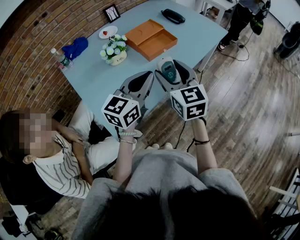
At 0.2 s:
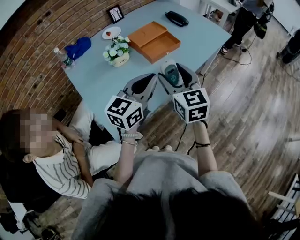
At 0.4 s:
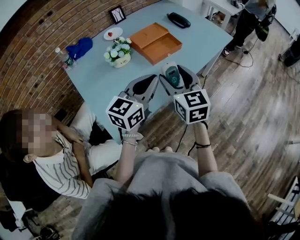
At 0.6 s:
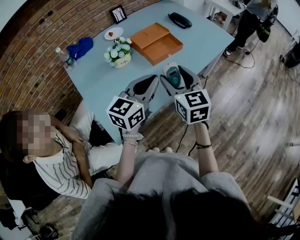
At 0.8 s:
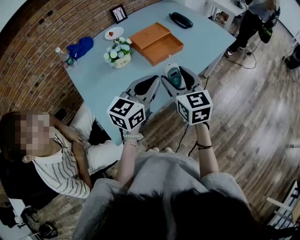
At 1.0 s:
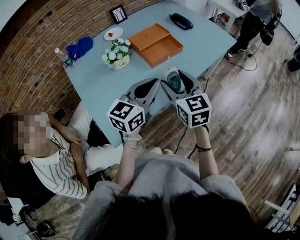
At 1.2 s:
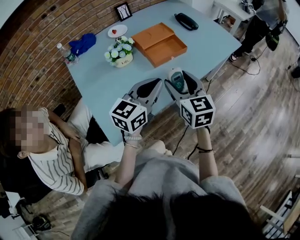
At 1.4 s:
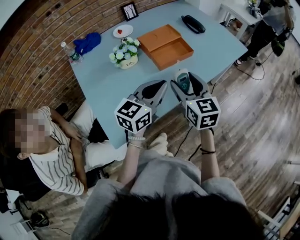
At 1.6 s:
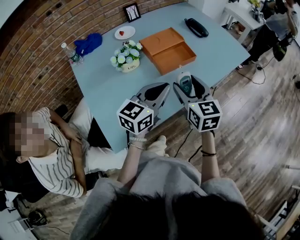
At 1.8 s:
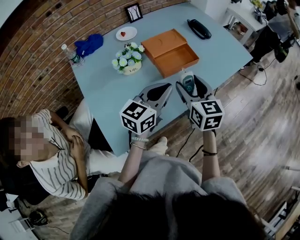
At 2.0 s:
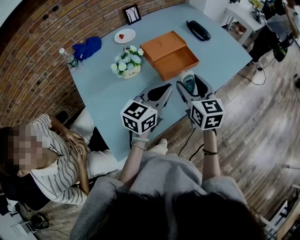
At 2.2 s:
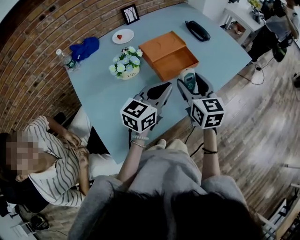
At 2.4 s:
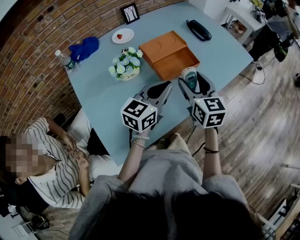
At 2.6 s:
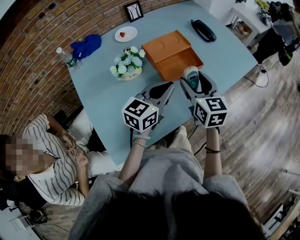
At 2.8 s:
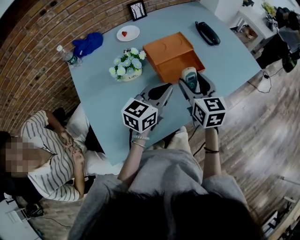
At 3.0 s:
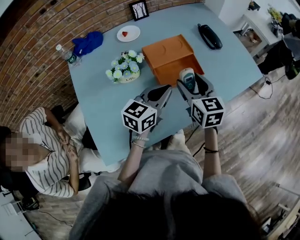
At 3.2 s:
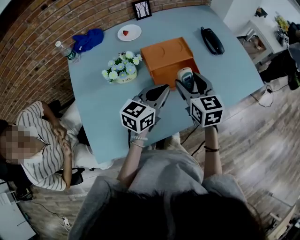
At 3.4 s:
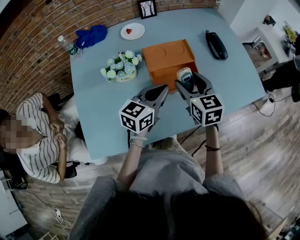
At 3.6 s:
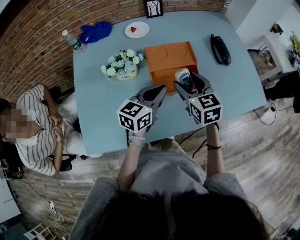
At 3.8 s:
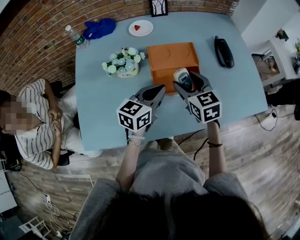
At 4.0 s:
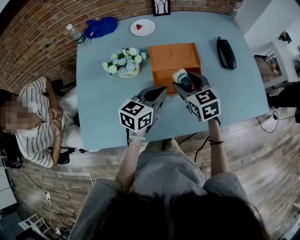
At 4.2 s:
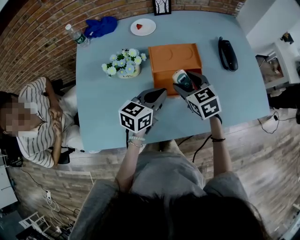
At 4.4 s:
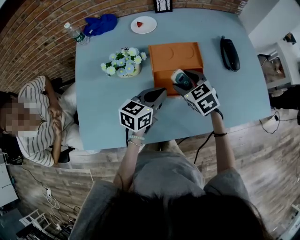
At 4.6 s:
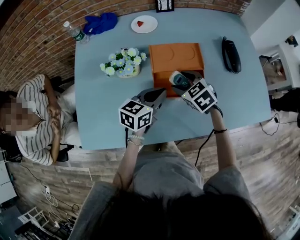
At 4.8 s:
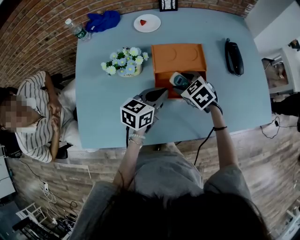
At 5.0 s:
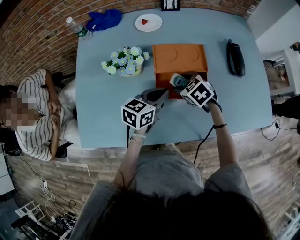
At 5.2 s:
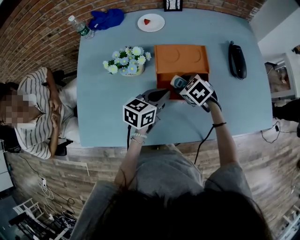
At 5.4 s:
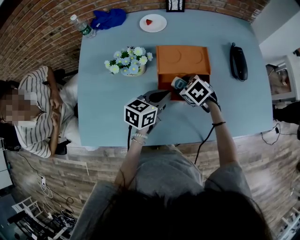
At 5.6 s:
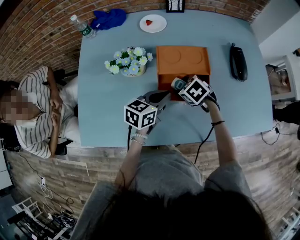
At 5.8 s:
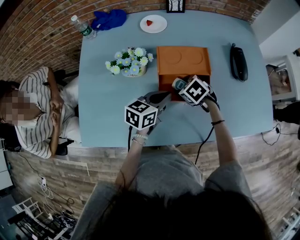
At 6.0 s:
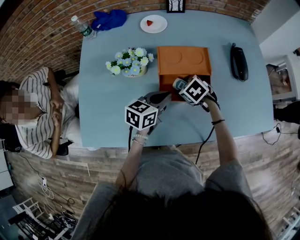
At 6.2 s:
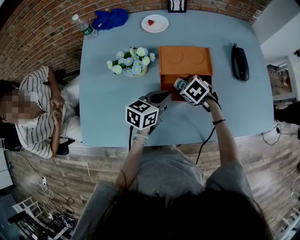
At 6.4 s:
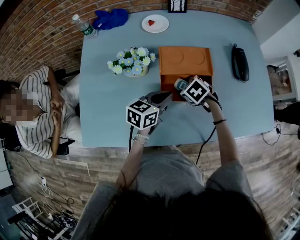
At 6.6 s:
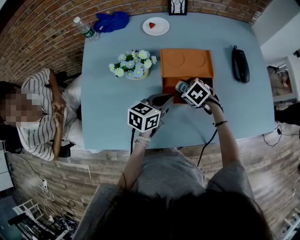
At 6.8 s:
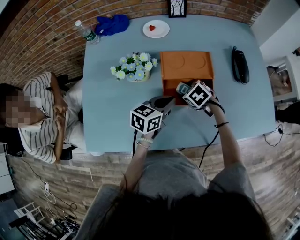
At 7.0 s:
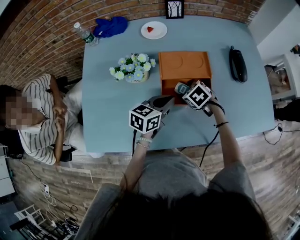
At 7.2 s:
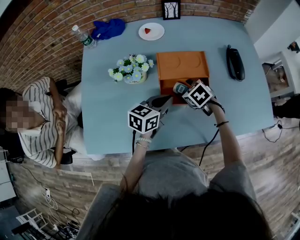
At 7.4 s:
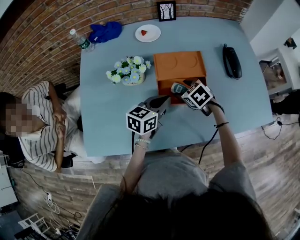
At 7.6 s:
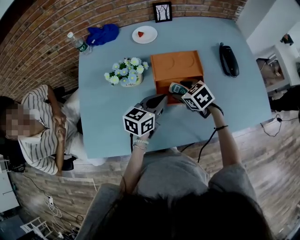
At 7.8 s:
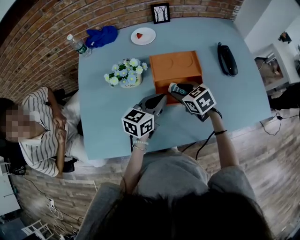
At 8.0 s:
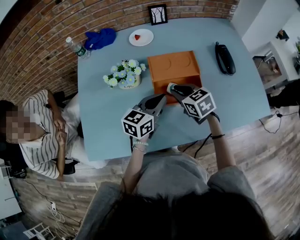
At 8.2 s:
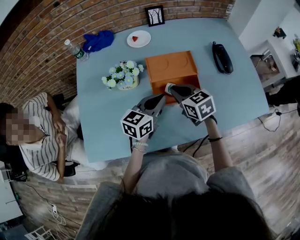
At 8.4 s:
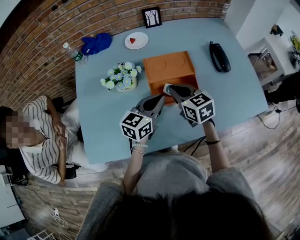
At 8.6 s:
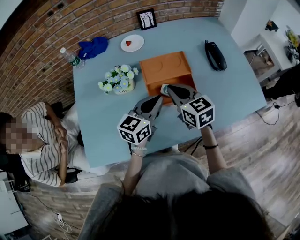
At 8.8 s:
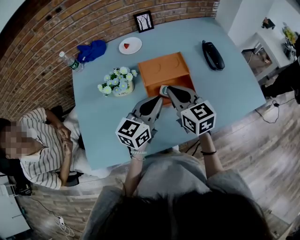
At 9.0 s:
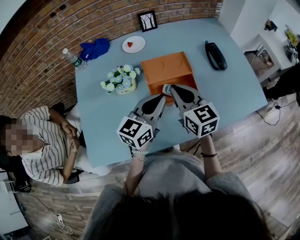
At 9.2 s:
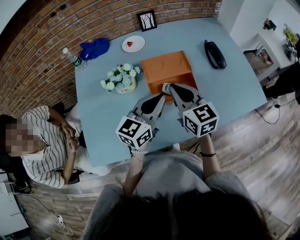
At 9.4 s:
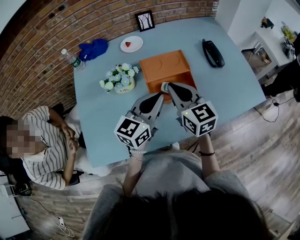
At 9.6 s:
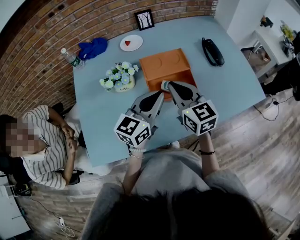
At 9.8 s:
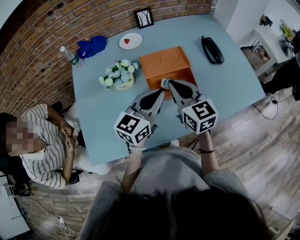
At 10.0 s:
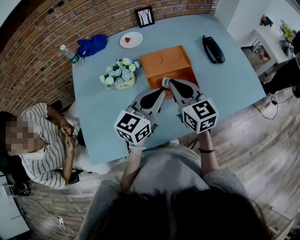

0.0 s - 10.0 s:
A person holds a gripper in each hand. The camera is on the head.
0.0 s - 1.4 s: The grippers both shift forward by about 5 cm.
1.4 s - 2.8 s: The grippers both shift forward by roughly 15 cm.
2.8 s - 4.2 s: The left gripper ends up about 10 cm from where it was, and changes its angle by approximately 20 degrees, while the right gripper changes place by roughly 15 cm, and rotates roughly 40 degrees.
4.2 s - 5.8 s: The right gripper shifts about 15 cm downward, and swivels some 30 degrees. The left gripper is displaced downward by approximately 5 cm.
5.8 s - 7.2 s: There are only small adjustments of the grippers.
7.2 s - 8.6 s: The right gripper heads upward, covering approximately 15 cm, angles its fingers upward, by roughly 40 degrees, and closes. The left gripper shifts roughly 10 cm upward.
8.6 s - 10.0 s: The left gripper ends up roughly 5 cm from where it was; the right gripper shifts by some 5 cm.

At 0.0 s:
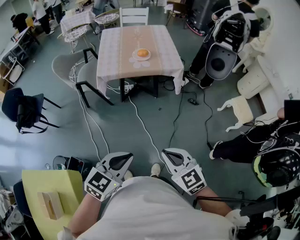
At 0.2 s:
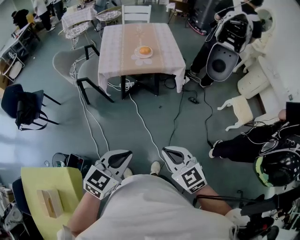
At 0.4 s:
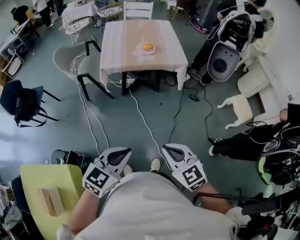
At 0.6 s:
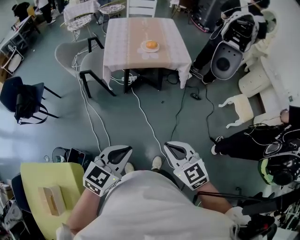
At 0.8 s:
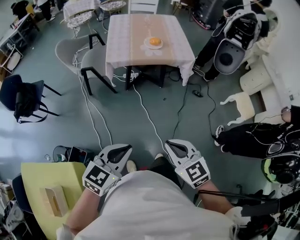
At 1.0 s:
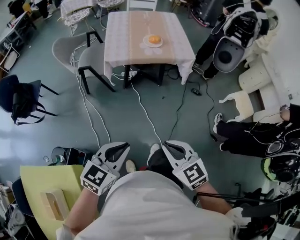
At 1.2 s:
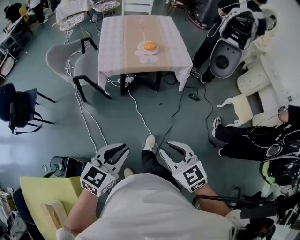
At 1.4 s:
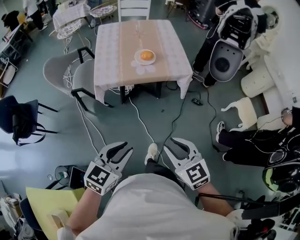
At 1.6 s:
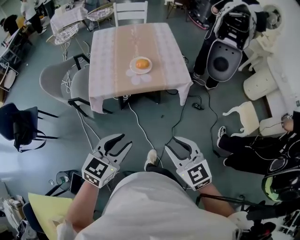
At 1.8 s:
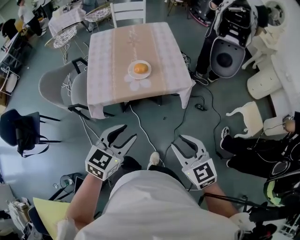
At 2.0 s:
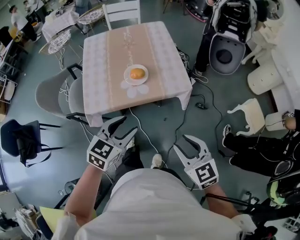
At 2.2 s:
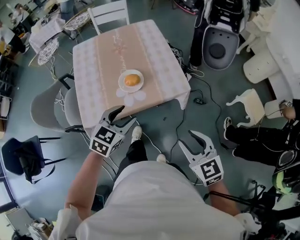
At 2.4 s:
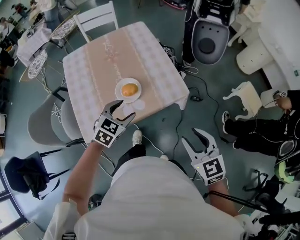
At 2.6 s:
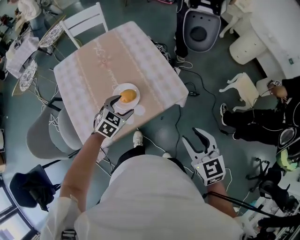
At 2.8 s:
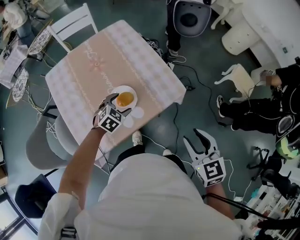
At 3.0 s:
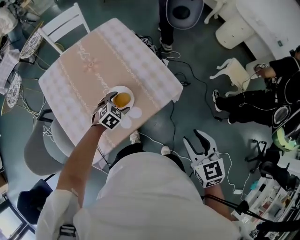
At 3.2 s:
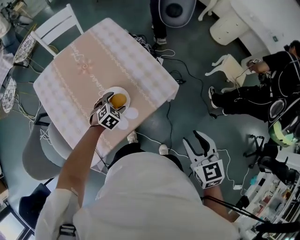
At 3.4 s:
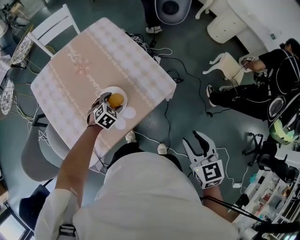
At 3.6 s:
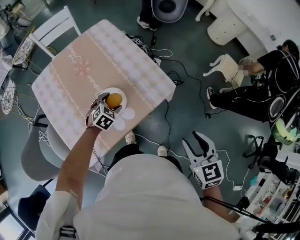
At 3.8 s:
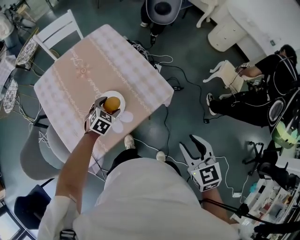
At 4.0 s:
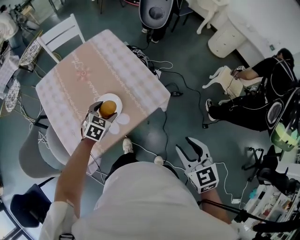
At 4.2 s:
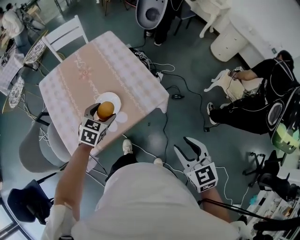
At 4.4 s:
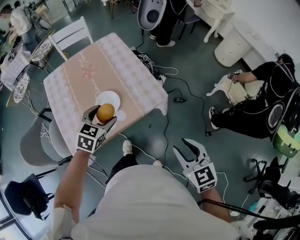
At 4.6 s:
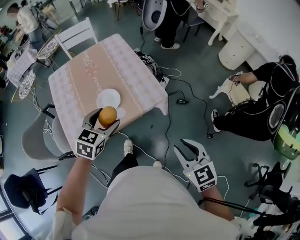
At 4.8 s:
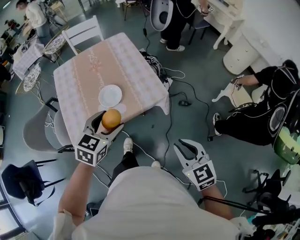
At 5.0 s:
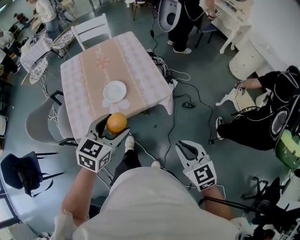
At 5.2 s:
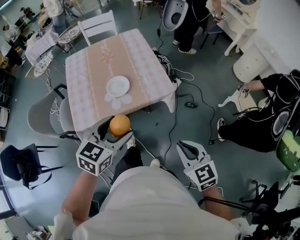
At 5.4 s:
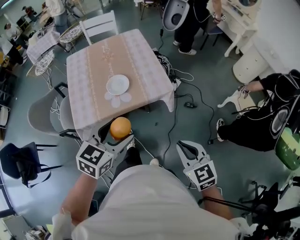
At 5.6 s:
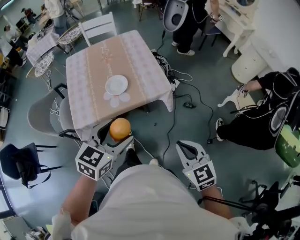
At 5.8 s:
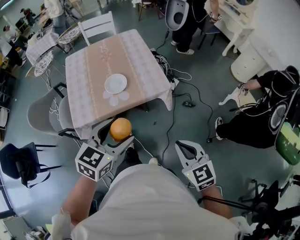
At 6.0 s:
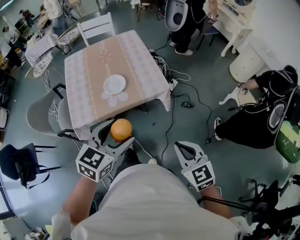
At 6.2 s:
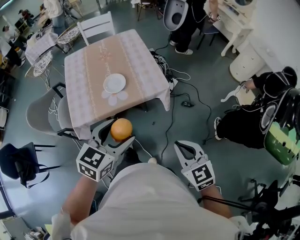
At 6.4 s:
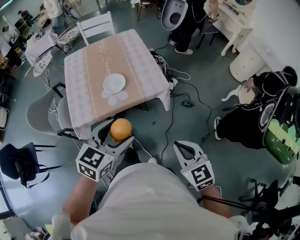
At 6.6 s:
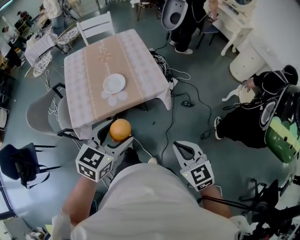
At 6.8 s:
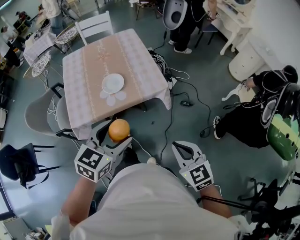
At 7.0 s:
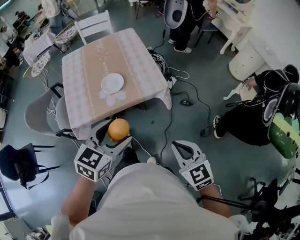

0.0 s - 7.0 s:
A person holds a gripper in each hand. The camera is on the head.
0.0 s - 1.4 s: Both grippers move forward, some 20 cm. The right gripper opens up.
1.4 s - 2.8 s: The right gripper shifts by about 35 cm, and rotates some 40 degrees; the left gripper ends up approximately 60 cm from where it was, swivels roughly 50 degrees, and opens up.
2.8 s - 4.2 s: The right gripper goes approximately 5 cm to the right; the left gripper moves upward, about 10 cm.
4.2 s - 5.6 s: The left gripper heads backward, upward and to the right, covering some 35 cm. Meanwhile the right gripper shifts about 15 cm backward and to the right, turns by some 20 degrees, and closes its fingers.
5.6 s - 7.0 s: There are only small adjustments of the grippers.

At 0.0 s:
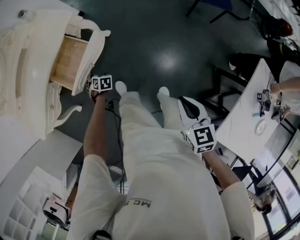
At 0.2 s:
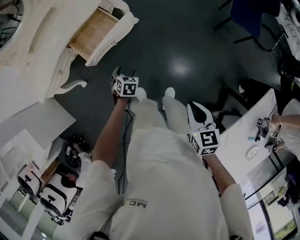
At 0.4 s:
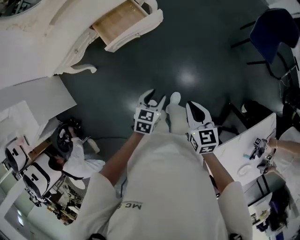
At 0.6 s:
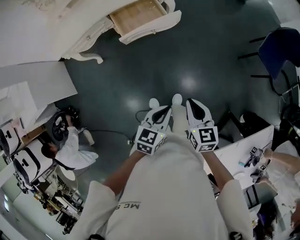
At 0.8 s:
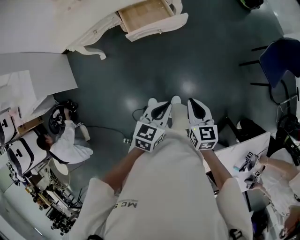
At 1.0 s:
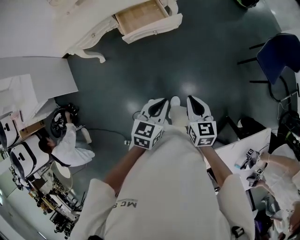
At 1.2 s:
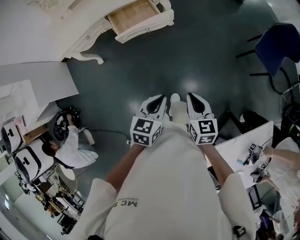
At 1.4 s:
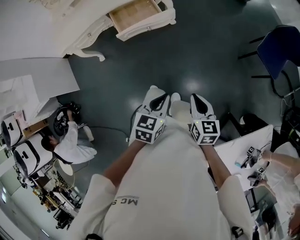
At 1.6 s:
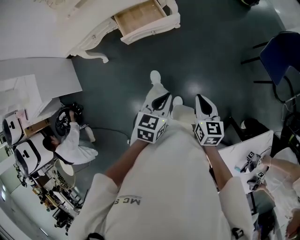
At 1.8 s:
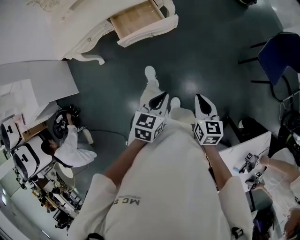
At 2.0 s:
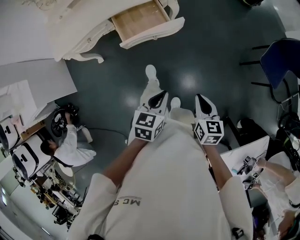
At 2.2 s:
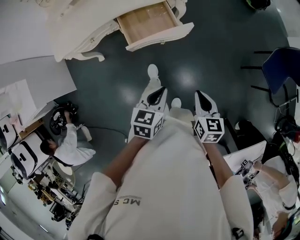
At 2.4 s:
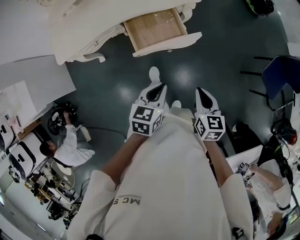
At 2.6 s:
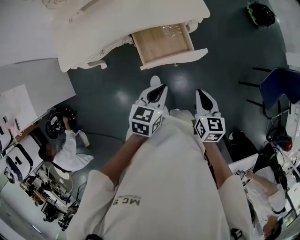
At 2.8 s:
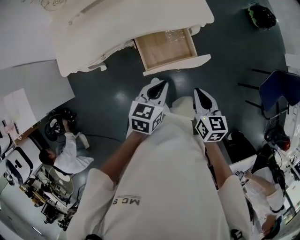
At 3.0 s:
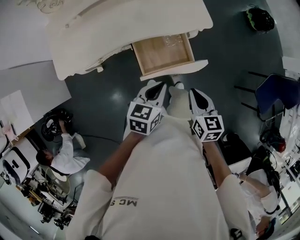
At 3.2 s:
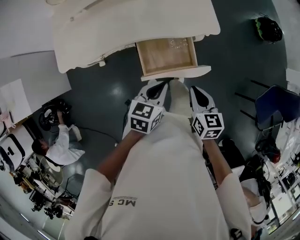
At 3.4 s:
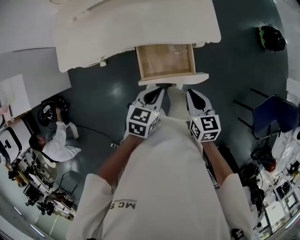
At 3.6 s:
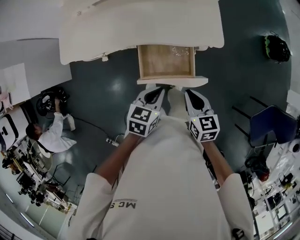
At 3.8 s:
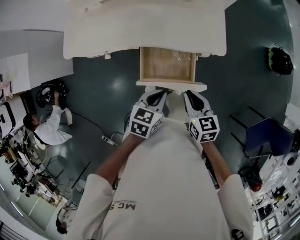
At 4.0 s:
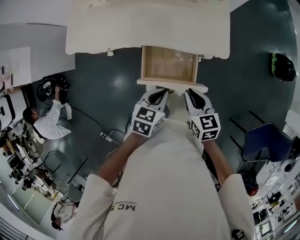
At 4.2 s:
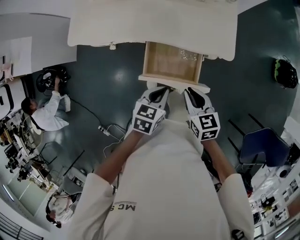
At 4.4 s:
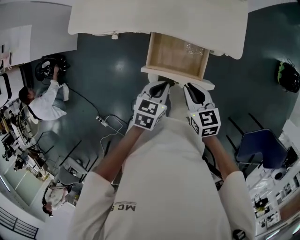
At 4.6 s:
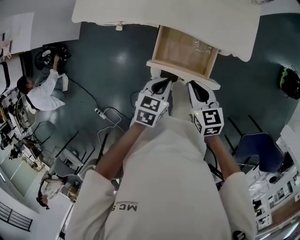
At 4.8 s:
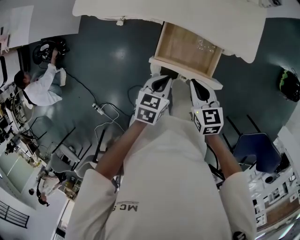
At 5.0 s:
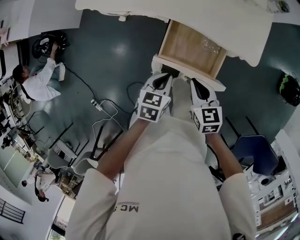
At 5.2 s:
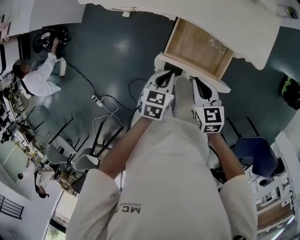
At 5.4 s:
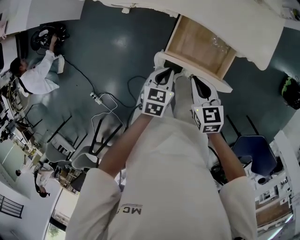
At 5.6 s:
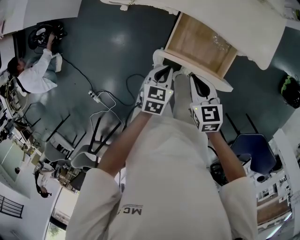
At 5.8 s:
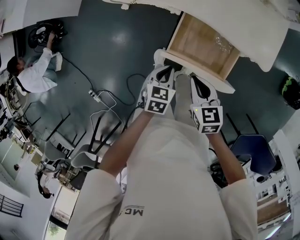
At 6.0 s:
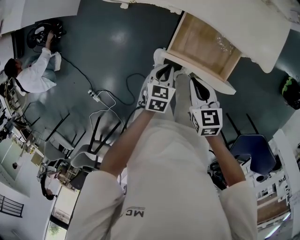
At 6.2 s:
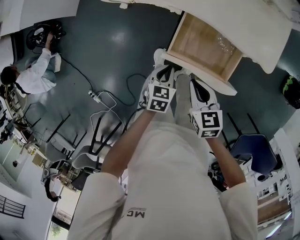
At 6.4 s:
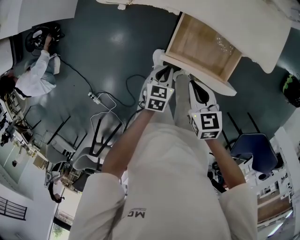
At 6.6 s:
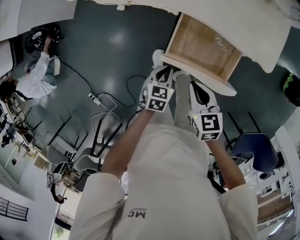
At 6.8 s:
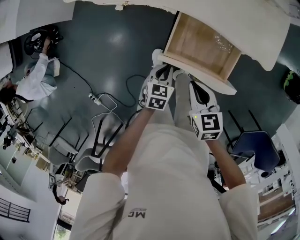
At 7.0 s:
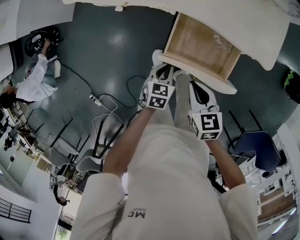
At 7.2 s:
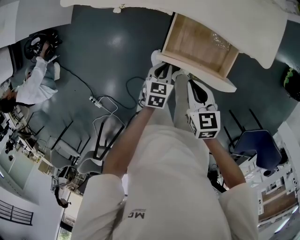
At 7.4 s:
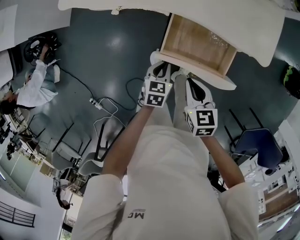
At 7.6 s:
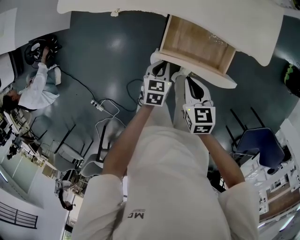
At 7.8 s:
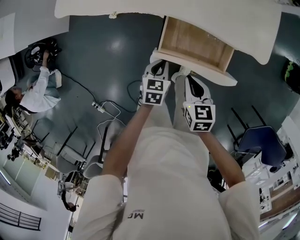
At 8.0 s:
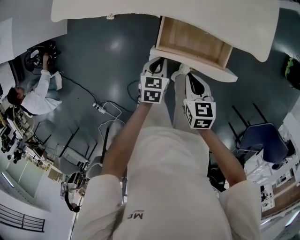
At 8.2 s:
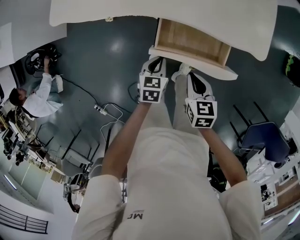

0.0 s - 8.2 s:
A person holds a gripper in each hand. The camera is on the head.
0.0 s - 1.6 s: The left gripper goes approximately 40 cm upward, backward and to the right, rotates roughly 50 degrees, and closes up.
1.6 s - 3.2 s: Both grippers are carried forward and to the left, about 40 cm.
3.2 s - 5.0 s: The two grippers go some 10 cm downward. The right gripper swivels some 40 degrees. Meanwhile the left gripper swivels roughly 30 degrees.
5.0 s - 6.6 s: The left gripper goes about 15 cm downward; the right gripper ends up some 5 cm from where it was.
6.6 s - 8.2 s: The left gripper goes approximately 5 cm forward; the right gripper shifts by roughly 5 cm.
